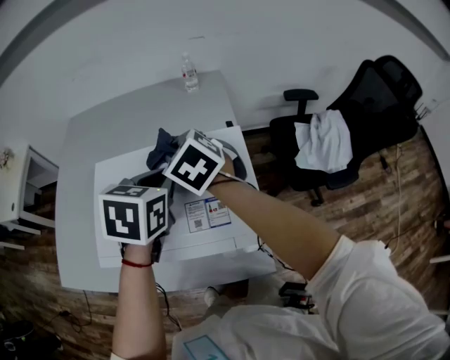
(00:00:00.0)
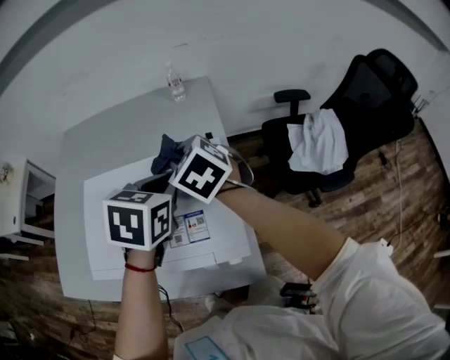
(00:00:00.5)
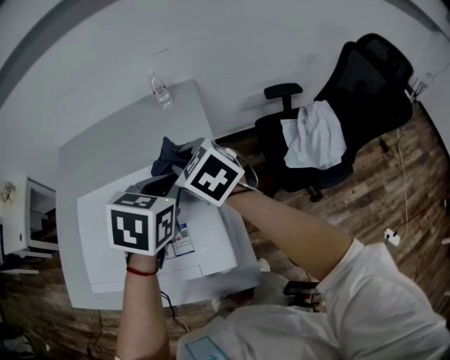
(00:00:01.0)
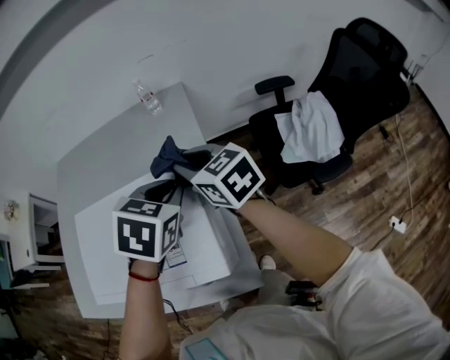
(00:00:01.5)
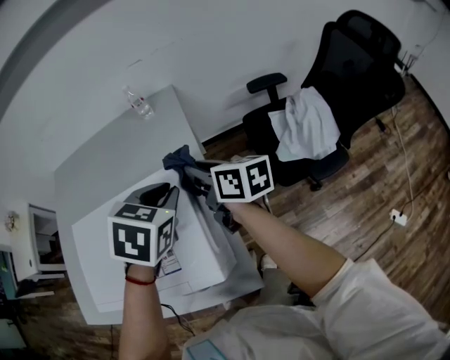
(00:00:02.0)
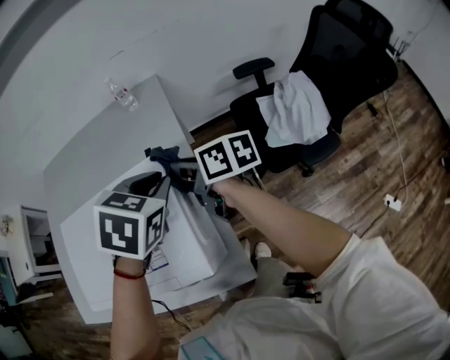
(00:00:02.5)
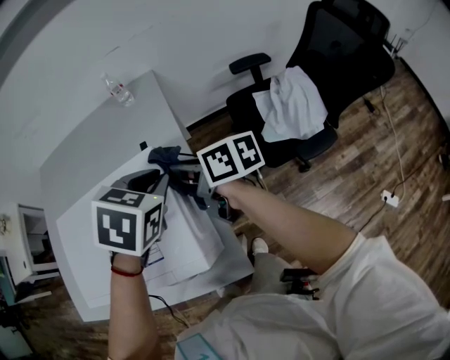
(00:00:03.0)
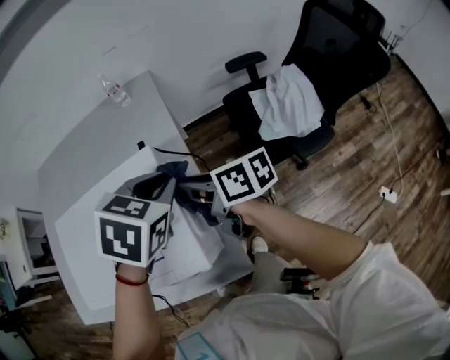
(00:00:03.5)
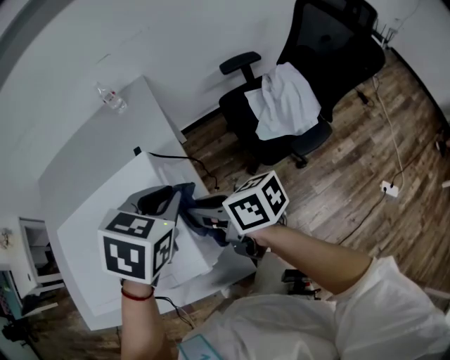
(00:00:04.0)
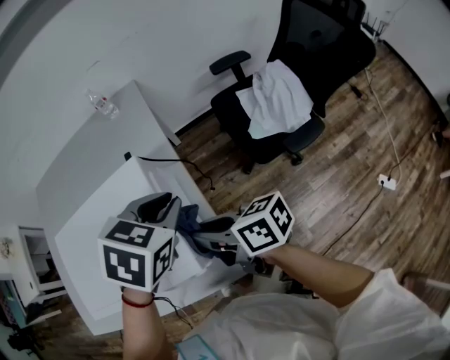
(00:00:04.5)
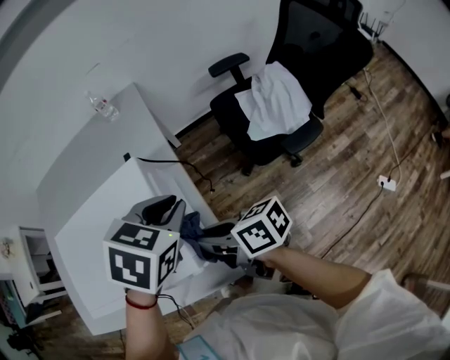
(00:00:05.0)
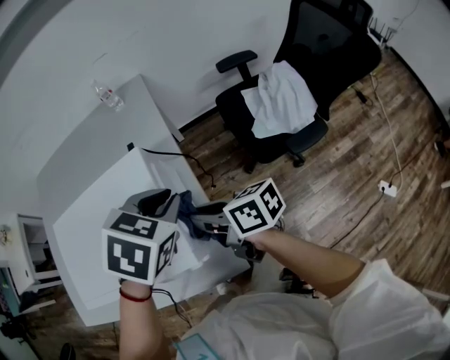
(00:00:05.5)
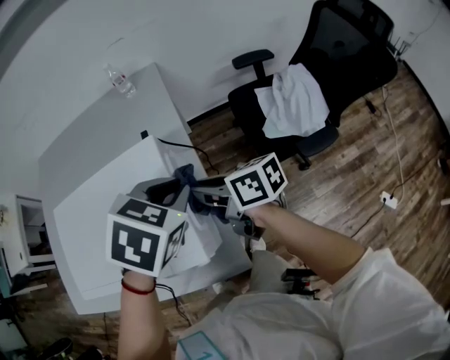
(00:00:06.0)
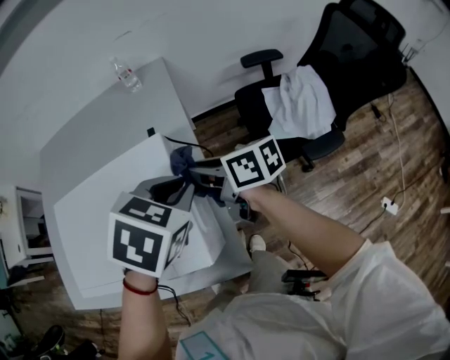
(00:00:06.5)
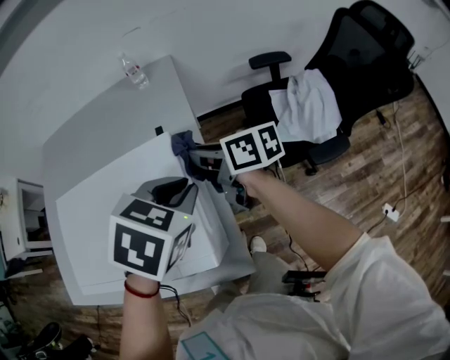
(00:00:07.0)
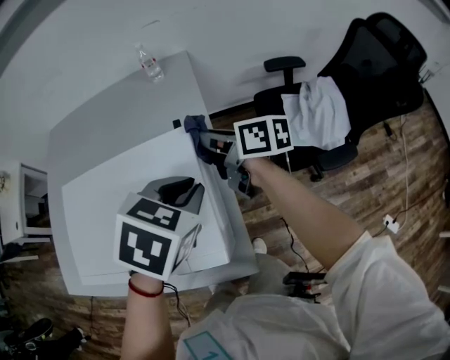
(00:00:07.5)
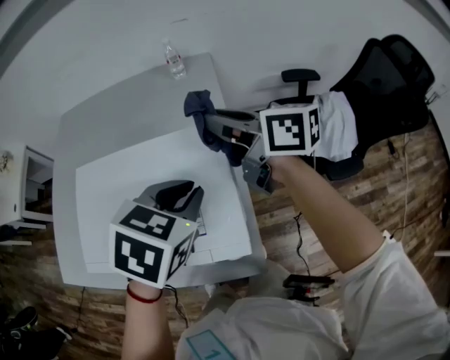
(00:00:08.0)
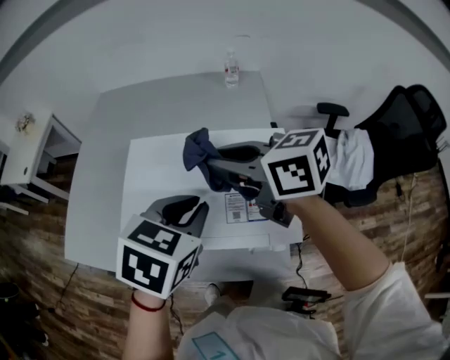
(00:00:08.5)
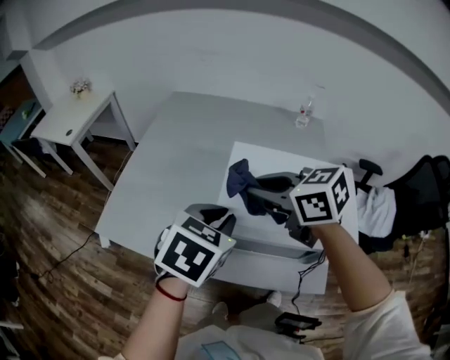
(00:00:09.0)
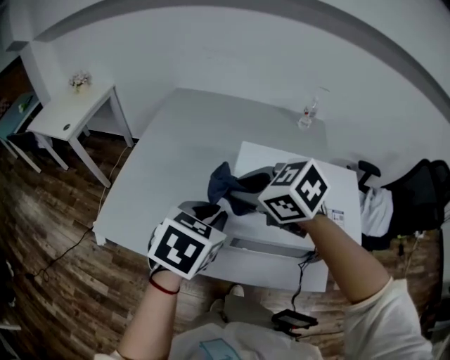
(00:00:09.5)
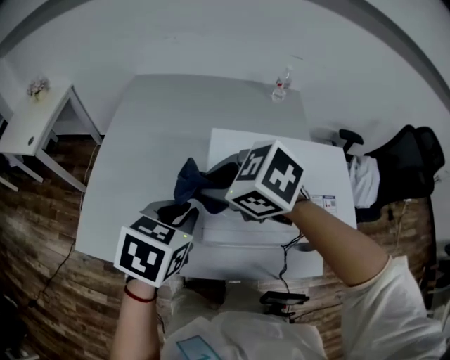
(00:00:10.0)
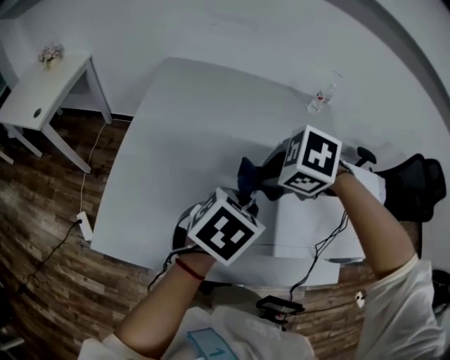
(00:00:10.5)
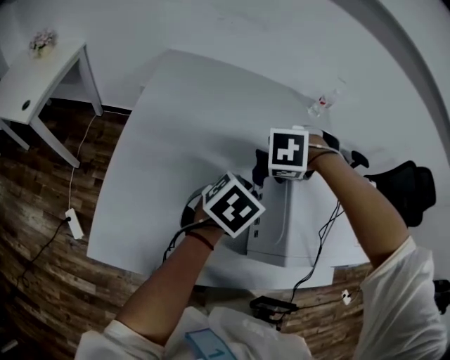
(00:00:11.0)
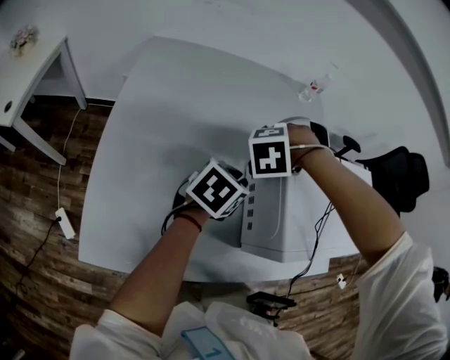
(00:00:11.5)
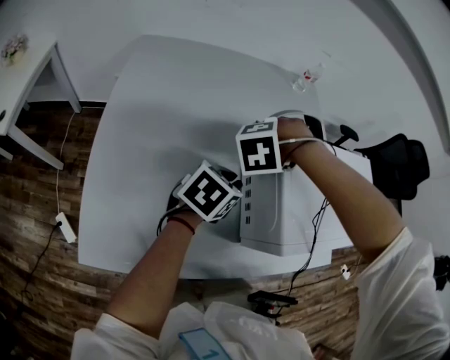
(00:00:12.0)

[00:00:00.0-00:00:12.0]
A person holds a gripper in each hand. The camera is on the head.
00:00:00.0 to 00:00:02.0: Both grippers travel together to the right, roughly 20 cm. The right gripper twists roughly 60 degrees clockwise, seen from behind. The left gripper rotates about 20 degrees.
00:00:02.0 to 00:00:04.0: The left gripper is displaced backward by about 5 cm; the right gripper shifts roughly 15 cm backward.
00:00:04.0 to 00:00:06.0: The right gripper moves about 5 cm backward and comes back.
00:00:06.0 to 00:00:08.0: The right gripper goes approximately 15 cm upward and forward, while the left gripper is displaced to the left by approximately 10 cm.
00:00:08.0 to 00:00:10.0: The two grippers go some 40 cm to the left. The right gripper tips its fingers downward by approximately 40 degrees.
00:00:10.0 to 00:00:12.0: The right gripper shifts by roughly 20 cm, and changes its angle by about 70 degrees. The left gripper heads downward, covering roughly 10 cm, and rotates approximately 30 degrees.

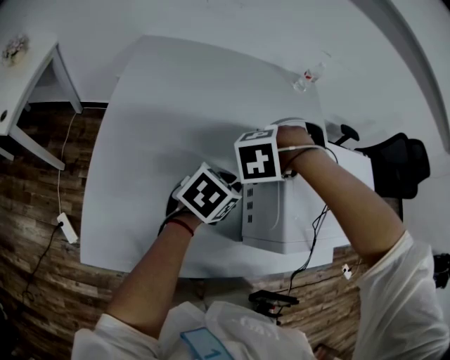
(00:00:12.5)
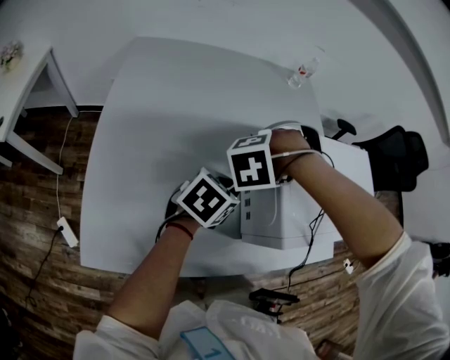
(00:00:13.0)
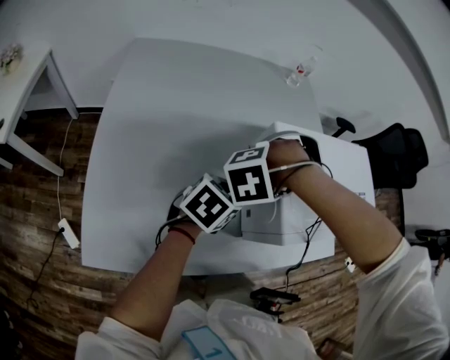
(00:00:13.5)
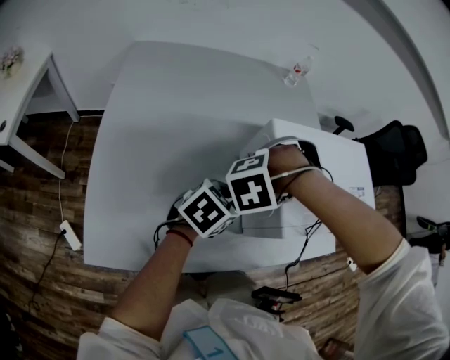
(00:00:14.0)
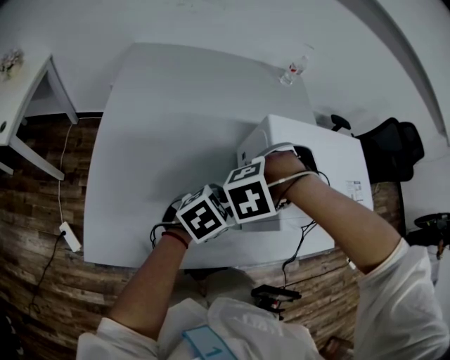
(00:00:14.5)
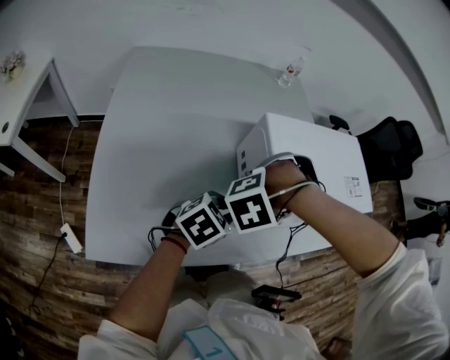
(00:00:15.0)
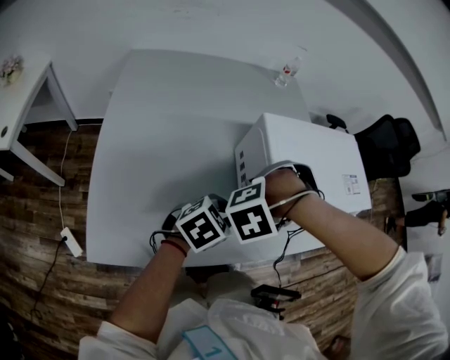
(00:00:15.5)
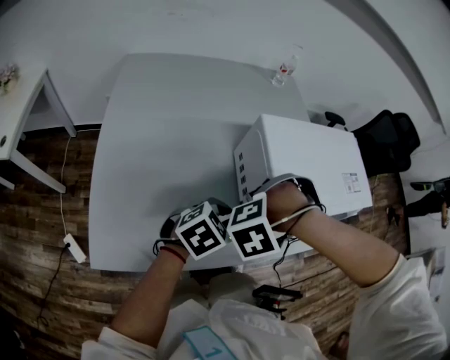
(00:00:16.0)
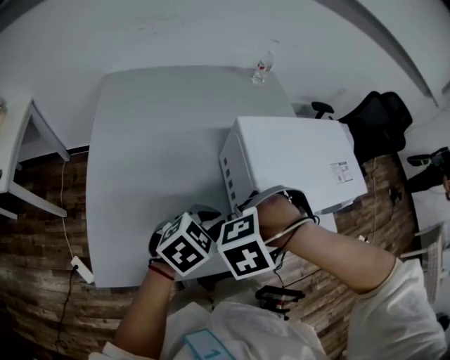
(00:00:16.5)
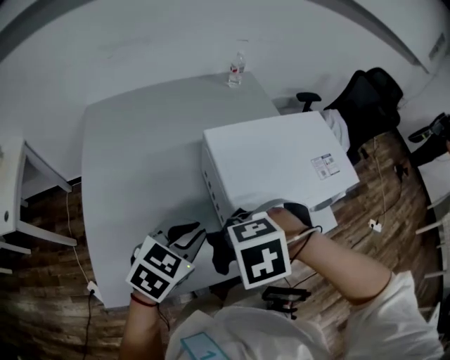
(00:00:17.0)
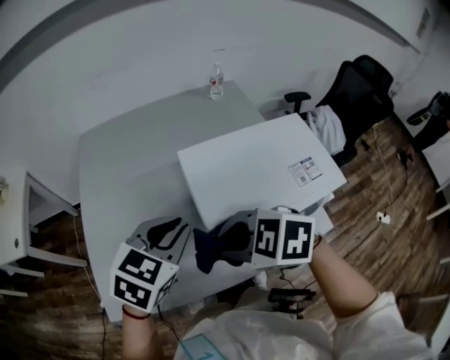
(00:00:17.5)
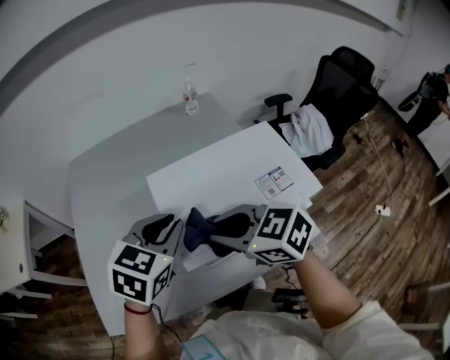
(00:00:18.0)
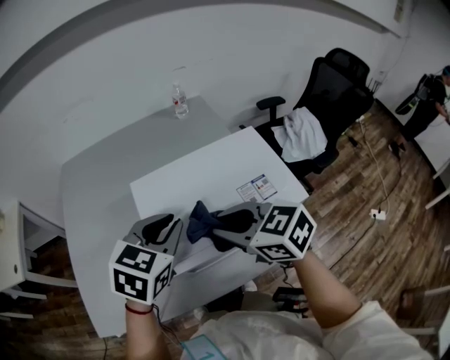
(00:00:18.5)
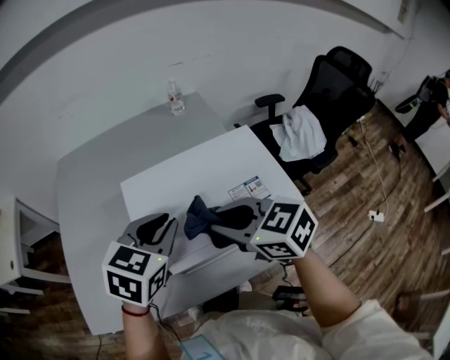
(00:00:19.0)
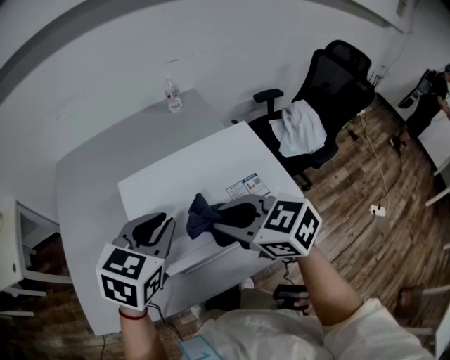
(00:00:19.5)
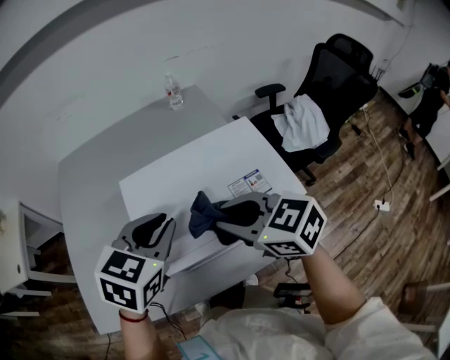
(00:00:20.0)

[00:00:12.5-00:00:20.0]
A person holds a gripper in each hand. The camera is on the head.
00:00:12.5 to 00:00:14.5: The grippers both shift to the right by some 10 cm.
00:00:14.5 to 00:00:16.5: The right gripper shifts by about 10 cm. Meanwhile the left gripper moves about 5 cm.
00:00:16.5 to 00:00:18.0: The left gripper goes approximately 15 cm upward. Meanwhile the right gripper shifts by some 20 cm, and tips its fingers upward by roughly 50 degrees.
00:00:18.0 to 00:00:20.0: The left gripper travels to the right by approximately 5 cm; the right gripper moves to the right, roughly 10 cm.

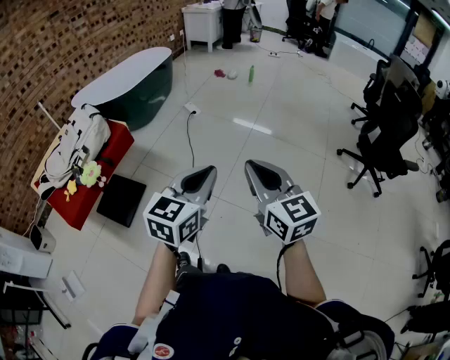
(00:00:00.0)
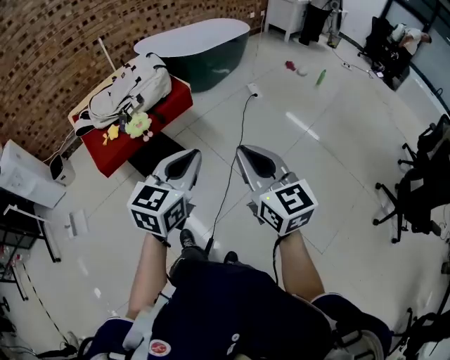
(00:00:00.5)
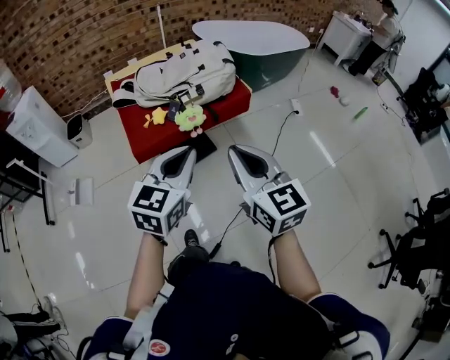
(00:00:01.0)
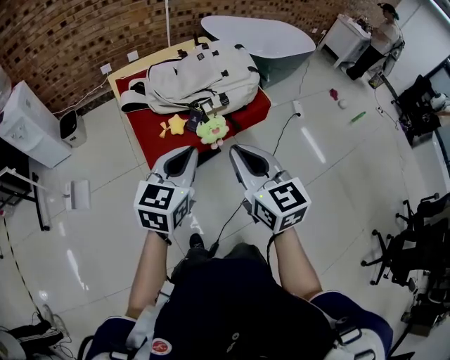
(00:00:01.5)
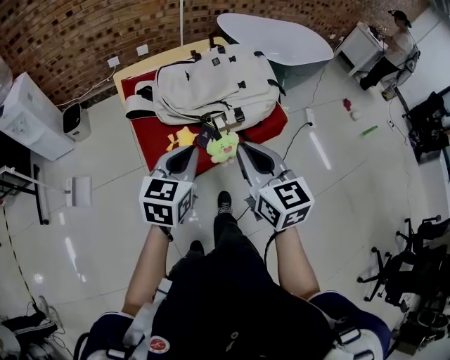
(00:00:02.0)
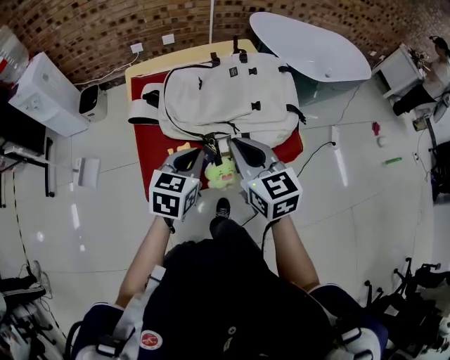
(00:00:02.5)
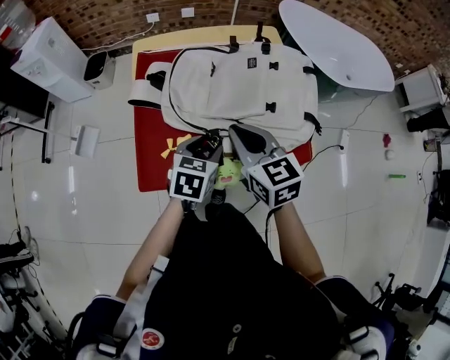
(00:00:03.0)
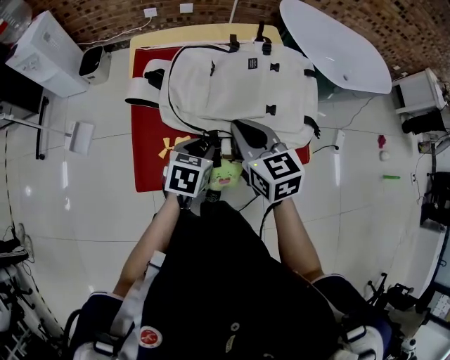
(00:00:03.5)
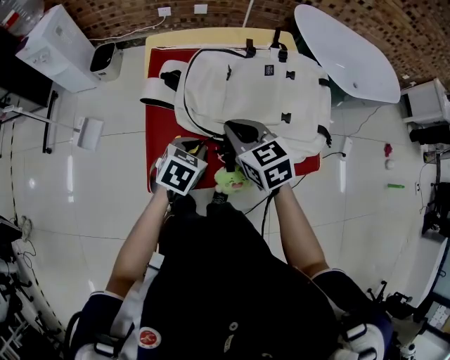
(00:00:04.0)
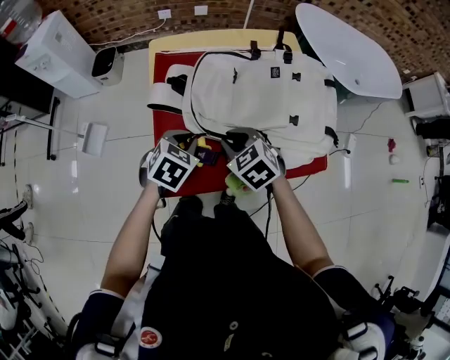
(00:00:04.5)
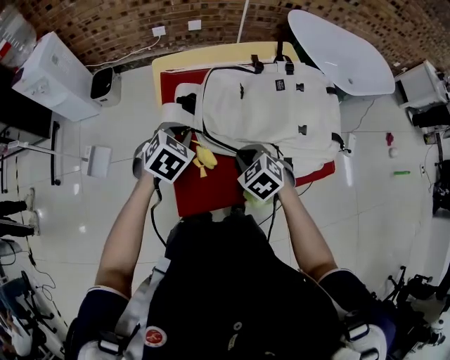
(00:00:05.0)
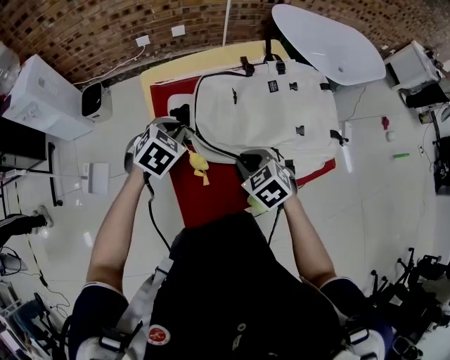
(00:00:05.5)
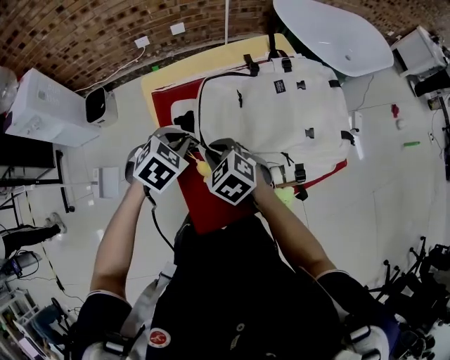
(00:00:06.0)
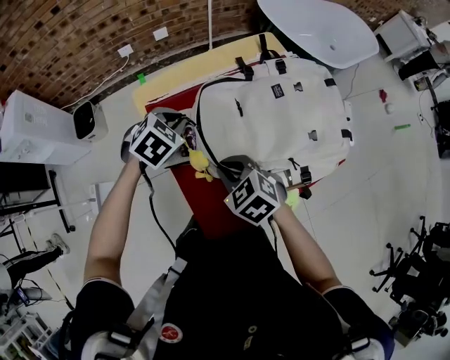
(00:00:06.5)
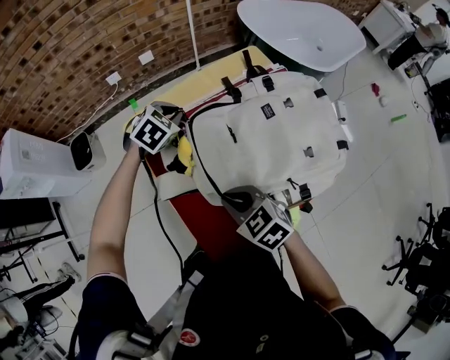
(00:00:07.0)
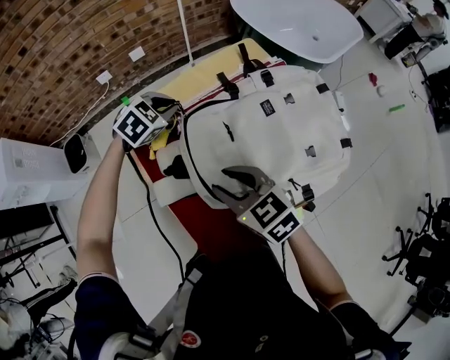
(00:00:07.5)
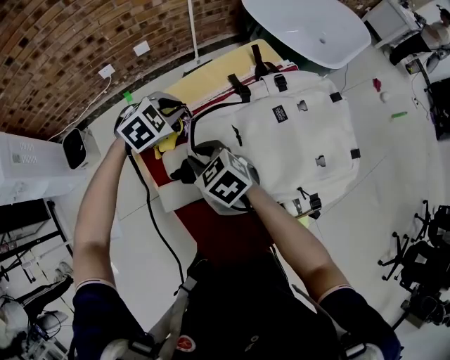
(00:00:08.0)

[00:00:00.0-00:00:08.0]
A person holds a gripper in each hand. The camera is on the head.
00:00:00.0 to 00:00:02.0: Both grippers are carried about 60 cm. The left gripper changes its angle by about 50 degrees. The right gripper changes its angle by roughly 40 degrees.
00:00:02.0 to 00:00:04.0: The left gripper is displaced downward and forward by roughly 20 cm, tilts its fingers roughly 30 degrees downward, and opens, then closes again; the right gripper heads forward and downward, covering approximately 25 cm, and swivels approximately 40 degrees.
00:00:04.0 to 00:00:06.0: The left gripper moves forward and to the left, approximately 15 cm, and changes its angle by approximately 30 degrees. Meanwhile the right gripper travels to the left and downward by roughly 15 cm, and rotates roughly 20 degrees.
00:00:06.0 to 00:00:08.0: The right gripper goes approximately 15 cm forward, while the left gripper moves forward, about 25 cm, and swivels roughly 30 degrees.
